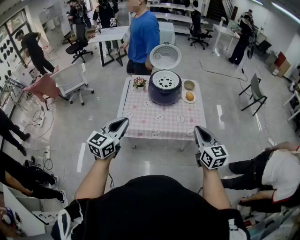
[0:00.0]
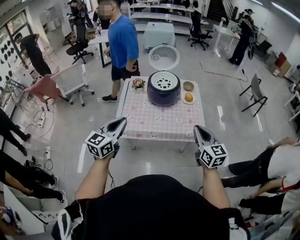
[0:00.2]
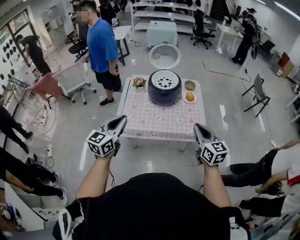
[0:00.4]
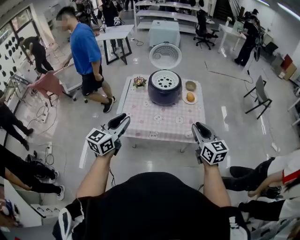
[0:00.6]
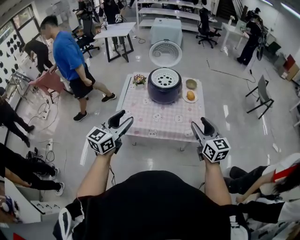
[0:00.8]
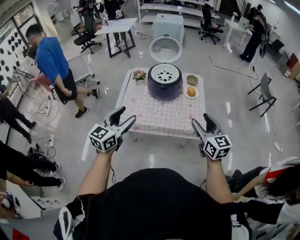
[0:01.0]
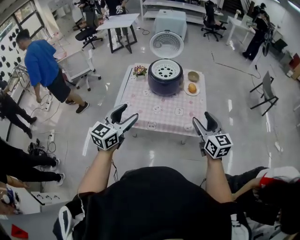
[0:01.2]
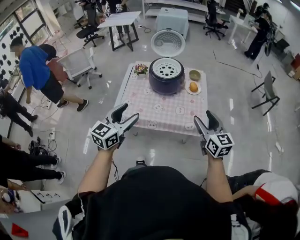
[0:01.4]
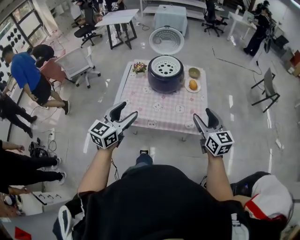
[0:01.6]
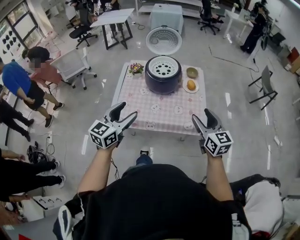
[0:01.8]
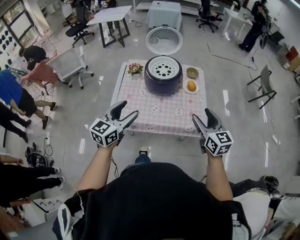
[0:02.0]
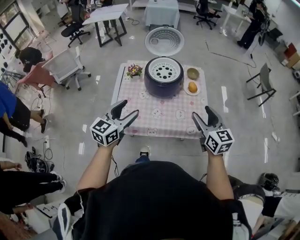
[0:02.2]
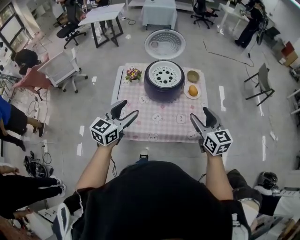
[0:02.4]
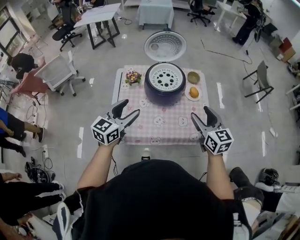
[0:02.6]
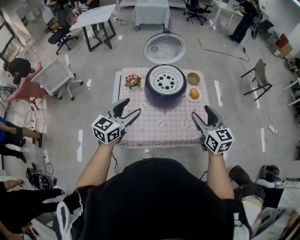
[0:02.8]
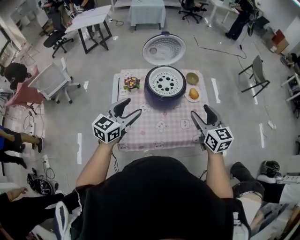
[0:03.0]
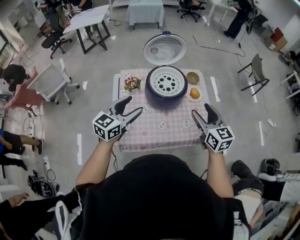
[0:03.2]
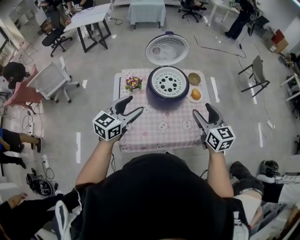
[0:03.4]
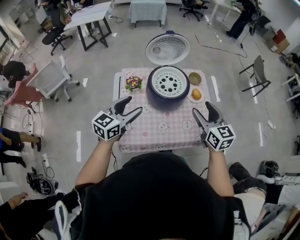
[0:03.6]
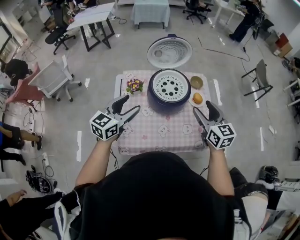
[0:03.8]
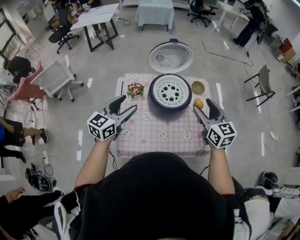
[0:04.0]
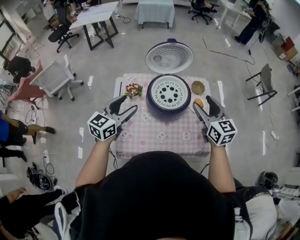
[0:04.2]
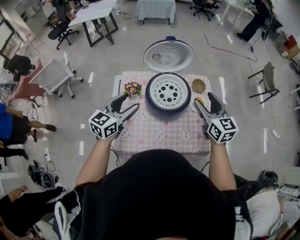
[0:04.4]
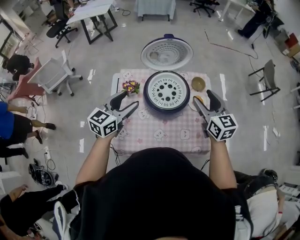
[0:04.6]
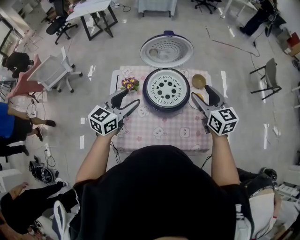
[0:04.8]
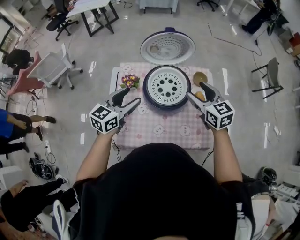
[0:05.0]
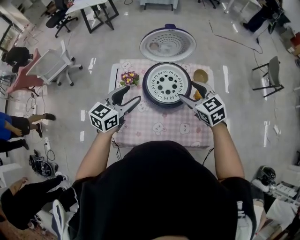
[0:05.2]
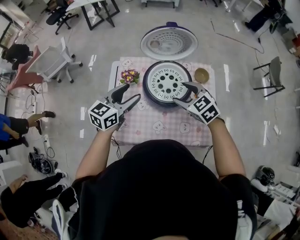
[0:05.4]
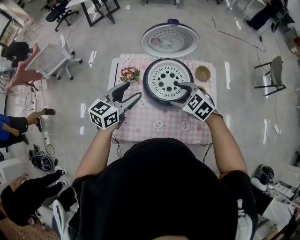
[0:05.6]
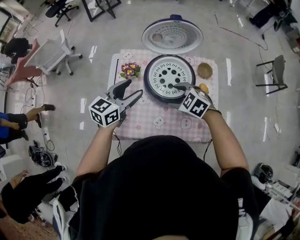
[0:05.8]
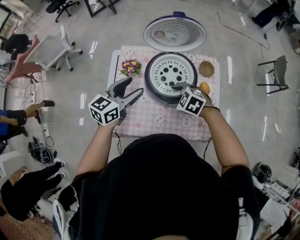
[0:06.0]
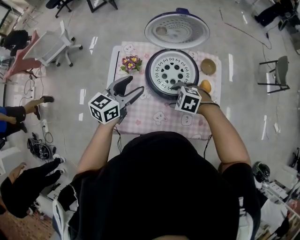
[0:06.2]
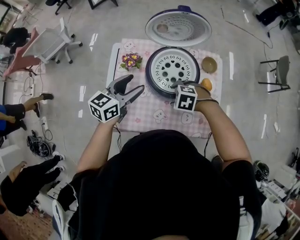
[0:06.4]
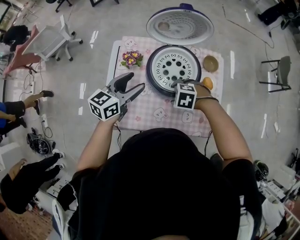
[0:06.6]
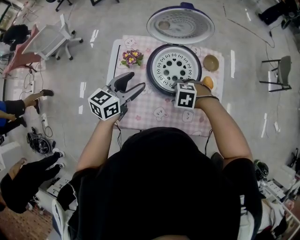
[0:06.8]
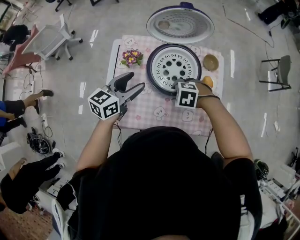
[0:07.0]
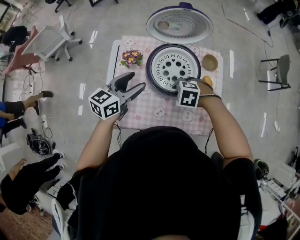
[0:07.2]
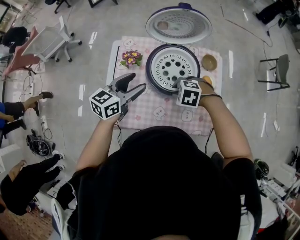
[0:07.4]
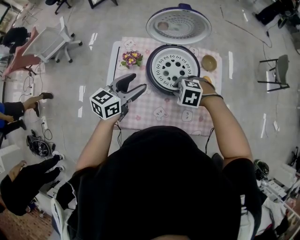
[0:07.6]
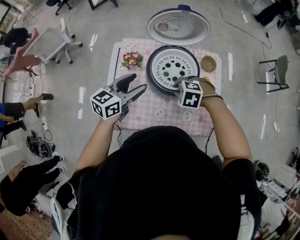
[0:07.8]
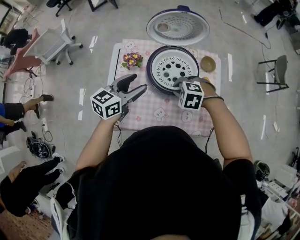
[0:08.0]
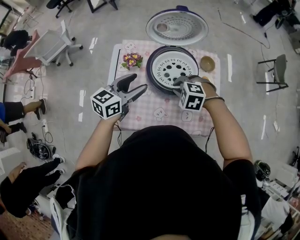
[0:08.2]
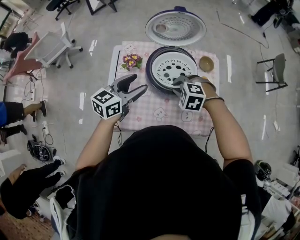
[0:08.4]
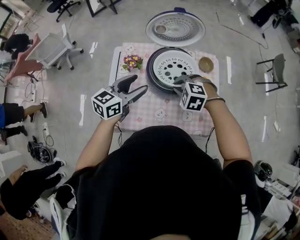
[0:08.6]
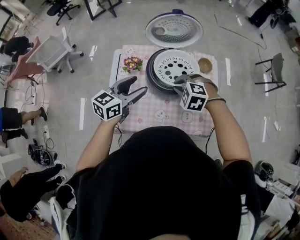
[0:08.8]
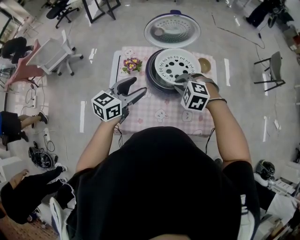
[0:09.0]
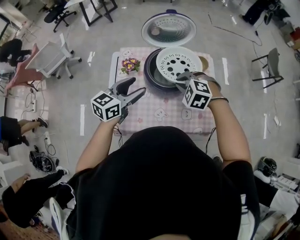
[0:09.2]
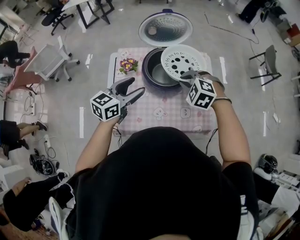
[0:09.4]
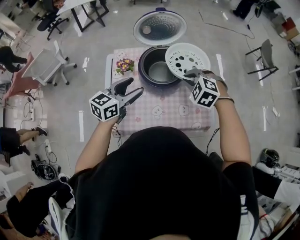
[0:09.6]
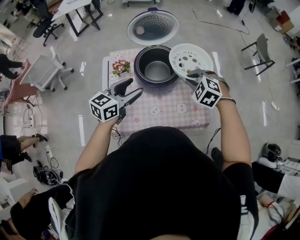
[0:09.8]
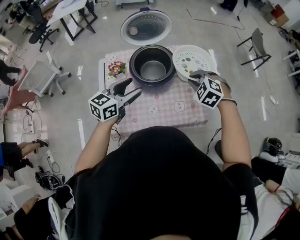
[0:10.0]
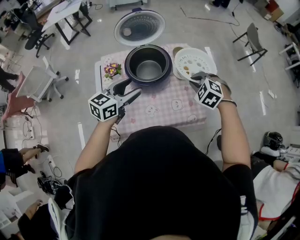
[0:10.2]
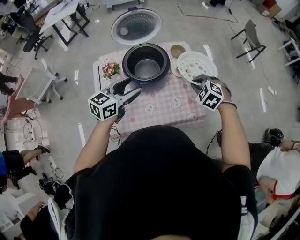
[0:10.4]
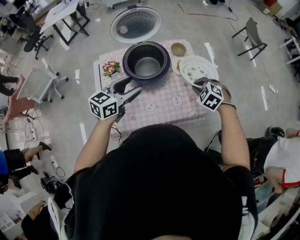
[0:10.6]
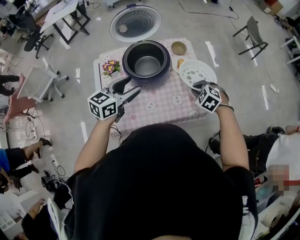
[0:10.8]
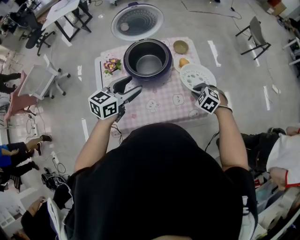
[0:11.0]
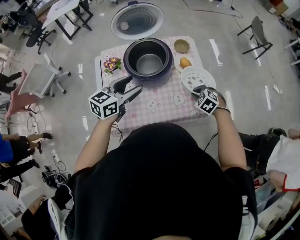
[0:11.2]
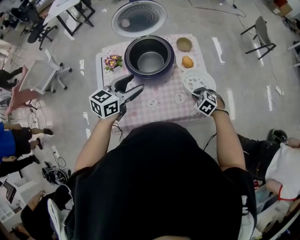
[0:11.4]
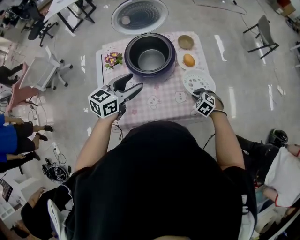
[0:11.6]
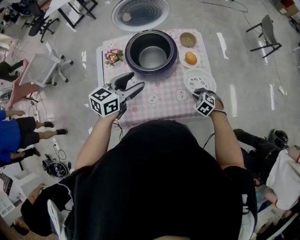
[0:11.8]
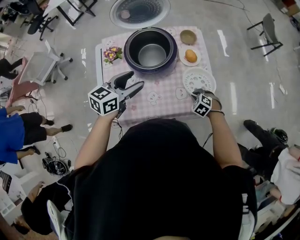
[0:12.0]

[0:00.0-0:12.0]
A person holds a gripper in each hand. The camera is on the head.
0:00.0 to 0:01.6: The left gripper is displaced to the right by approximately 10 cm, and opens; the right gripper travels forward and to the right by roughly 10 cm, and opens its fingers.
0:01.6 to 0:03.0: The grippers both shift forward and to the left by roughly 25 cm.
0:03.0 to 0:04.4: The grippers both shift forward by about 15 cm.
0:04.4 to 0:06.0: The left gripper shifts some 5 cm downward, while the right gripper goes roughly 20 cm downward, and tips its fingers downward by roughly 50 degrees.
0:06.0 to 0:07.6: The right gripper closes.
0:07.6 to 0:09.0: The right gripper heads upward, covering roughly 10 cm. The left gripper changes place by about 5 cm.
0:09.0 to 0:10.4: The left gripper is displaced to the right by about 10 cm. Meanwhile the right gripper travels to the right by approximately 20 cm, and rotates some 30 degrees.
0:10.4 to 0:12.0: The left gripper heads downward, covering about 5 cm. Meanwhile the right gripper goes about 25 cm downward.

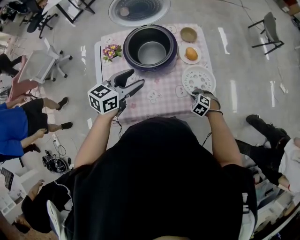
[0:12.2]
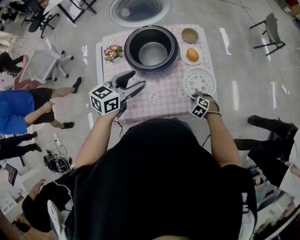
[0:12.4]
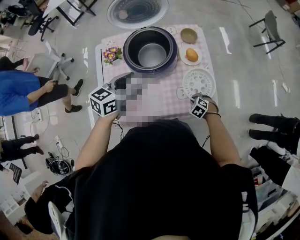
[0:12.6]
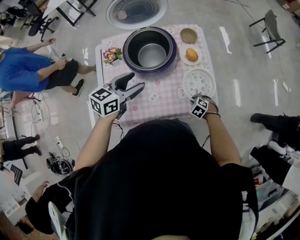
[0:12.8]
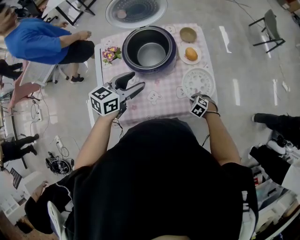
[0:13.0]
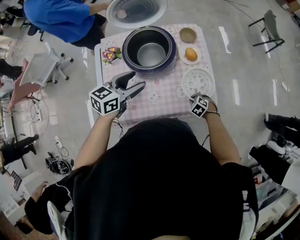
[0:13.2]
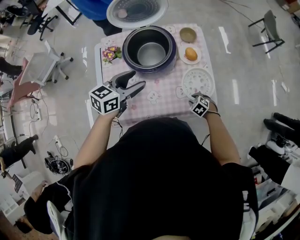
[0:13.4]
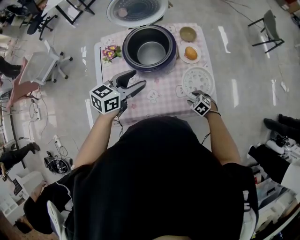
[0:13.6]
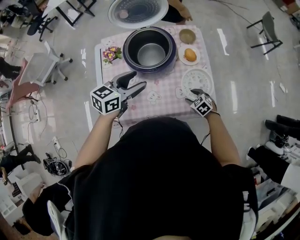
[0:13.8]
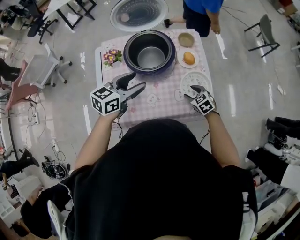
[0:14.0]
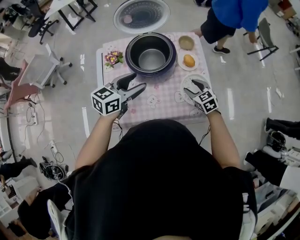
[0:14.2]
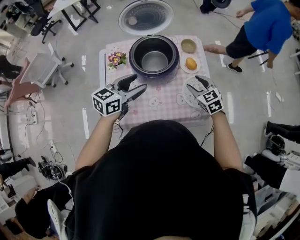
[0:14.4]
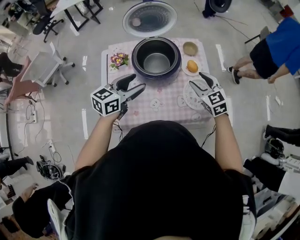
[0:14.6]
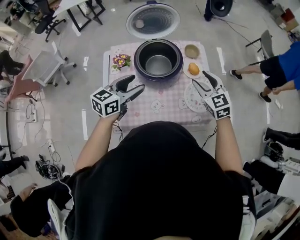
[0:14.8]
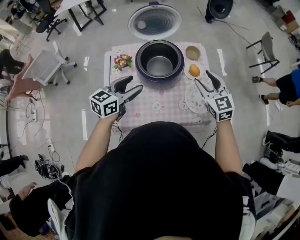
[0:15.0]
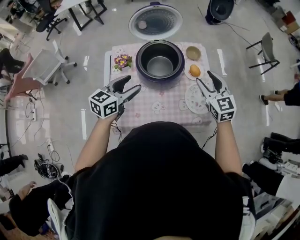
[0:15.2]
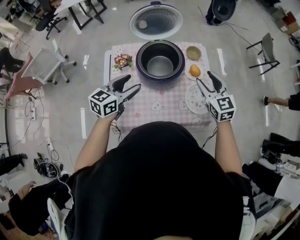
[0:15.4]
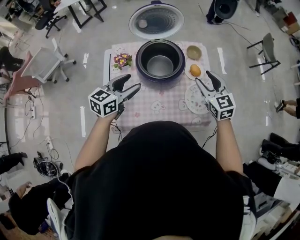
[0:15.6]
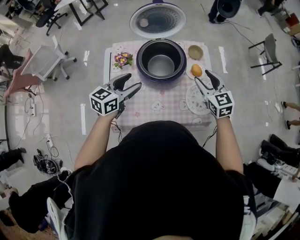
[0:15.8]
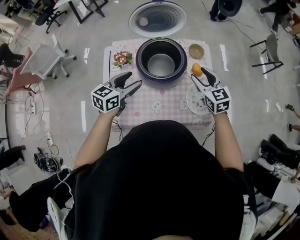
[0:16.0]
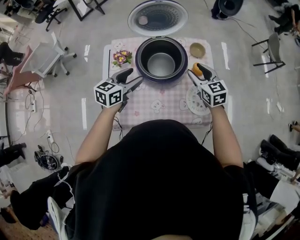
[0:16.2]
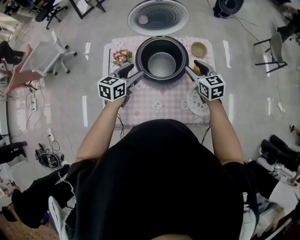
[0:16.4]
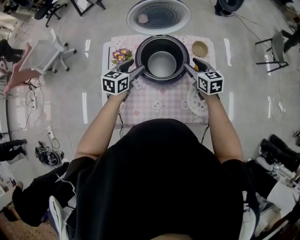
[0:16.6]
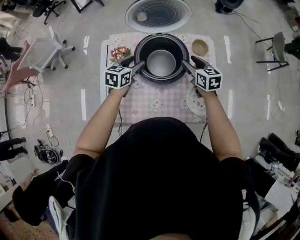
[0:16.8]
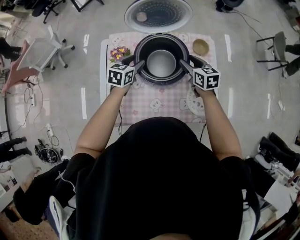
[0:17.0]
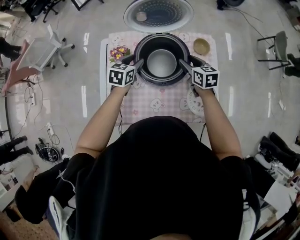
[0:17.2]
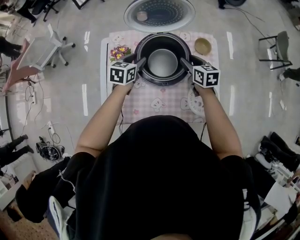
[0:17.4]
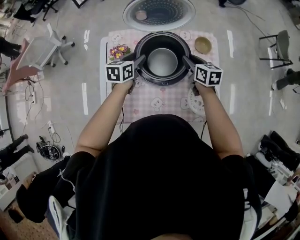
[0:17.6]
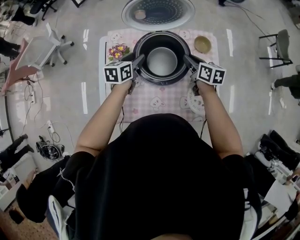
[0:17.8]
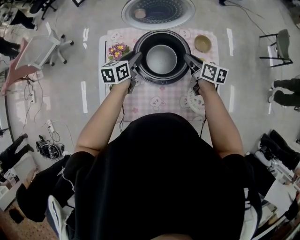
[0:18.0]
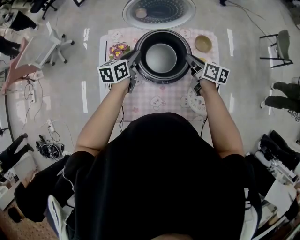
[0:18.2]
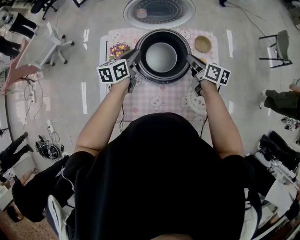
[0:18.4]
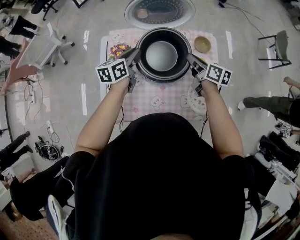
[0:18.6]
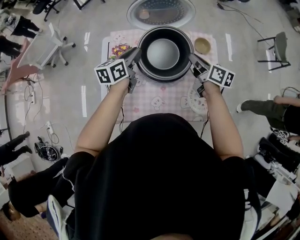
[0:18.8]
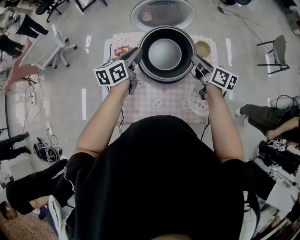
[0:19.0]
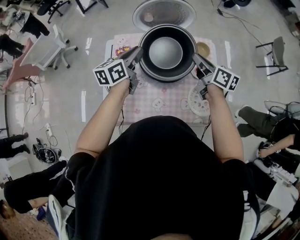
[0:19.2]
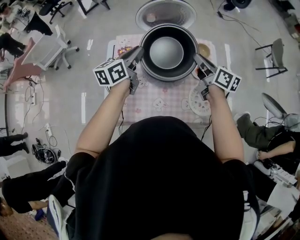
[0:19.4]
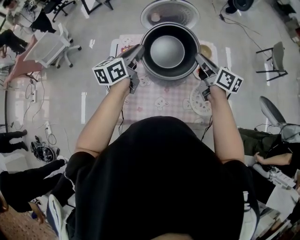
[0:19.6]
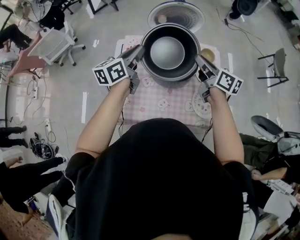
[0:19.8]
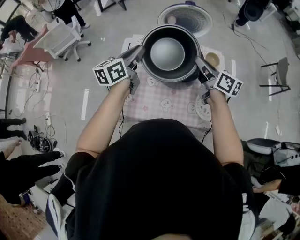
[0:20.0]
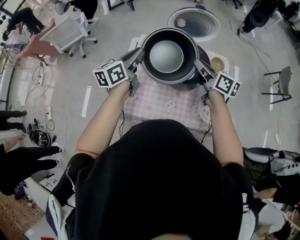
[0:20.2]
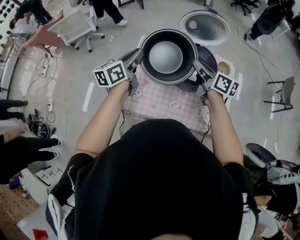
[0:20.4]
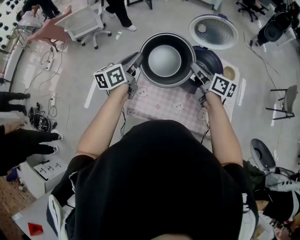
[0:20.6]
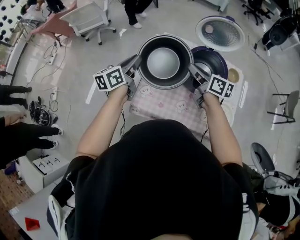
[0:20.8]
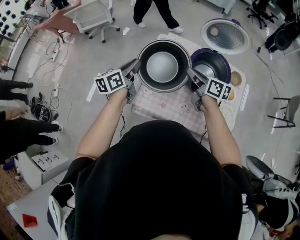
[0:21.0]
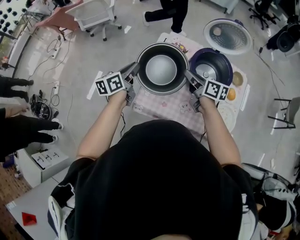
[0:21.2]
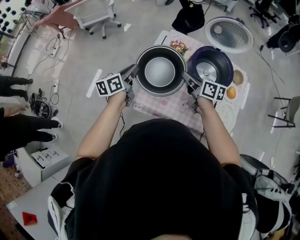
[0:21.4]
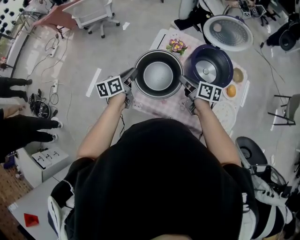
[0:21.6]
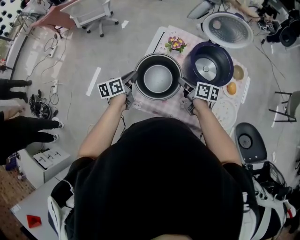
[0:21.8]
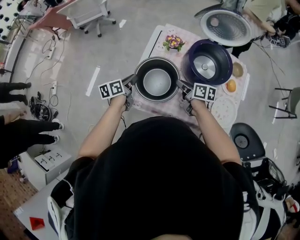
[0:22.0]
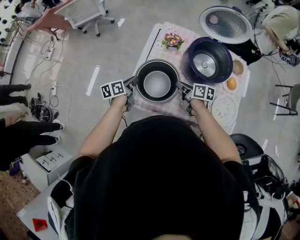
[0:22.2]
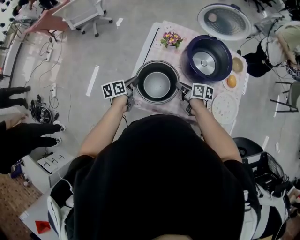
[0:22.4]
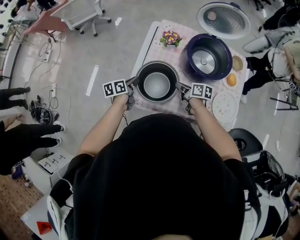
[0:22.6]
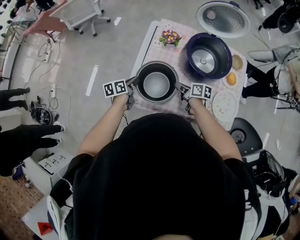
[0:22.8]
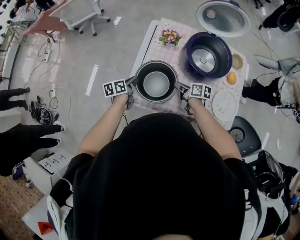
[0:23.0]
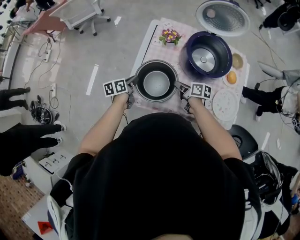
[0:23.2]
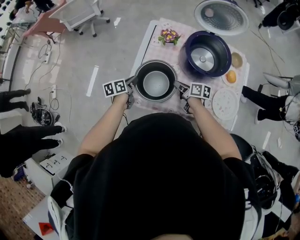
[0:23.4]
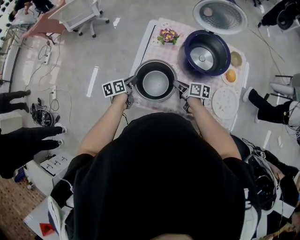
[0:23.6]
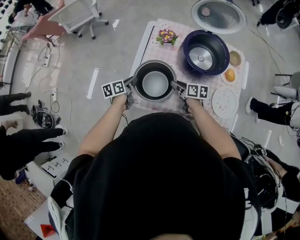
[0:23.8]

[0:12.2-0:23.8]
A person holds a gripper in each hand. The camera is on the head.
0:12.2 to 0:13.6: The right gripper opens.
0:13.6 to 0:15.0: The left gripper travels to the left by some 5 cm. Meanwhile the right gripper goes roughly 35 cm upward, and angles its fingers upward, by about 50 degrees.
0:15.0 to 0:16.6: The left gripper shifts some 15 cm forward and downward, while the right gripper goes about 15 cm downward and forward, and changes its angle by approximately 30 degrees.
0:16.6 to 0:18.0: The right gripper changes place by about 5 cm, turns by roughly 30 degrees, and closes its fingers; the left gripper moves forward, some 5 cm, and closes.
0:18.0 to 0:19.4: Both grippers move upward, some 15 cm.
0:19.4 to 0:21.0: The left gripper goes some 30 cm to the left and backward, and rotates some 20 degrees. The right gripper travels to the left by some 25 cm, and swivels approximately 20 degrees.
0:21.0 to 0:22.4: Both grippers travel together downward, roughly 20 cm. The right gripper changes its angle by about 20 degrees; the left gripper rotates roughly 20 degrees.
0:22.4 to 0:23.8: The grippers stay close to where they were, moving slightly.
